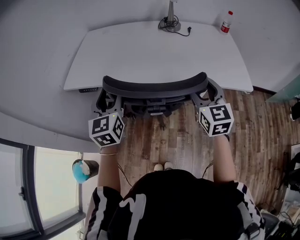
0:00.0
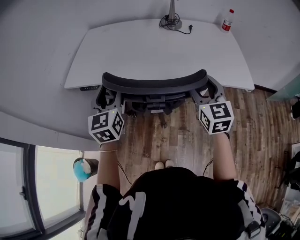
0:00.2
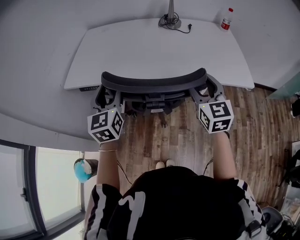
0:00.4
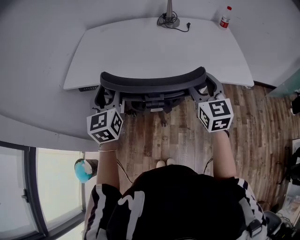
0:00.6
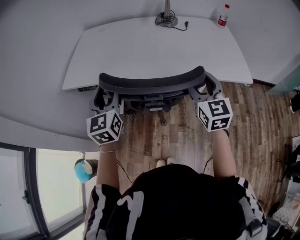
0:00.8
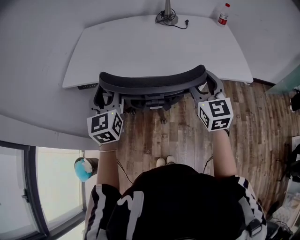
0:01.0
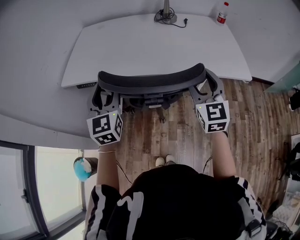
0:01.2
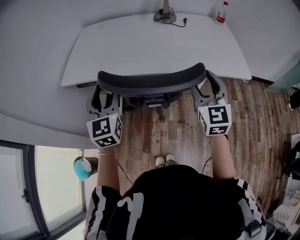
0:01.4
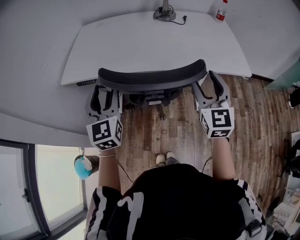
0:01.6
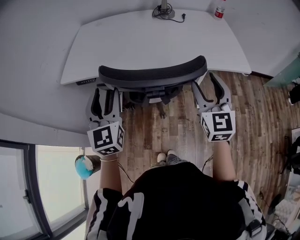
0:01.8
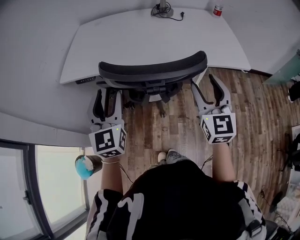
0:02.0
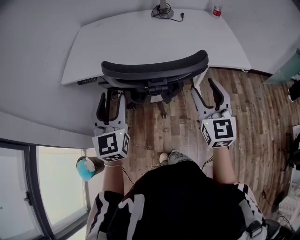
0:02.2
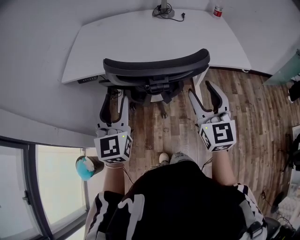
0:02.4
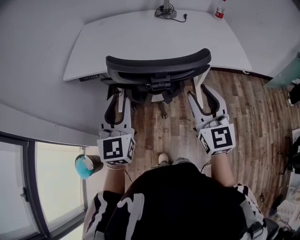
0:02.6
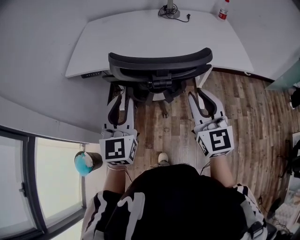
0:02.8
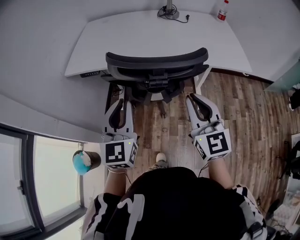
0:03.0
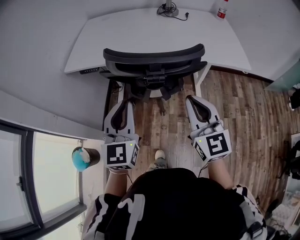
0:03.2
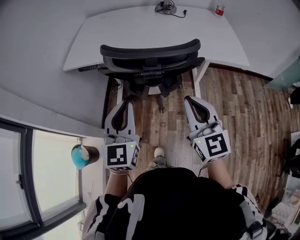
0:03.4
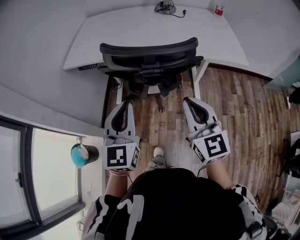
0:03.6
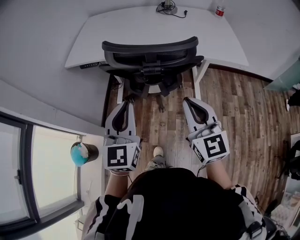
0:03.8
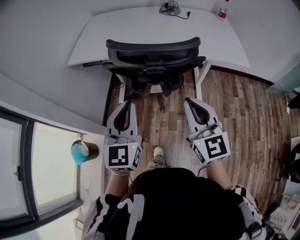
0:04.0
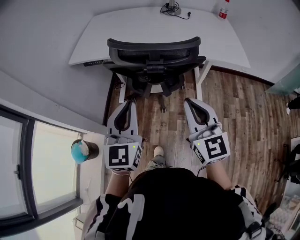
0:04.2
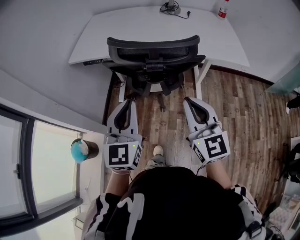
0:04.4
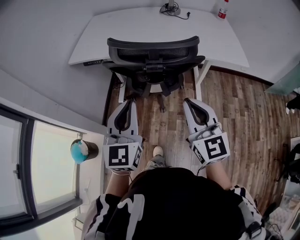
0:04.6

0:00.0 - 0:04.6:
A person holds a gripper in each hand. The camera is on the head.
0:00.0 - 0:01.6: The right gripper heads backward, covering roughly 5 cm.
0:01.6 - 0:03.0: The right gripper is displaced backward and to the left by about 15 cm, and closes up, while the left gripper travels backward by about 10 cm, and closes.
0:03.0 - 0:04.6: Both grippers travel together backward, approximately 10 cm.

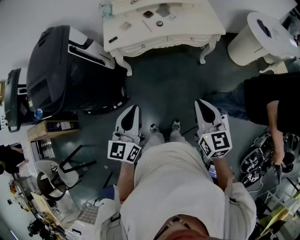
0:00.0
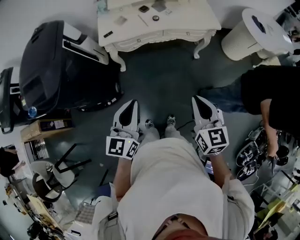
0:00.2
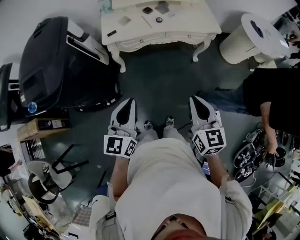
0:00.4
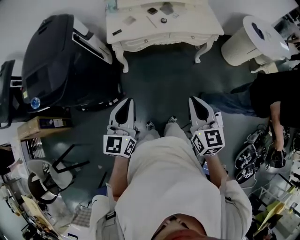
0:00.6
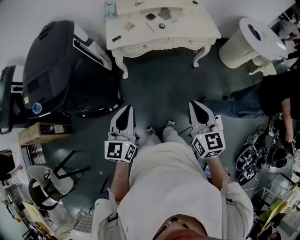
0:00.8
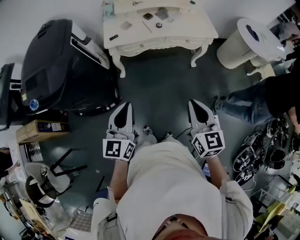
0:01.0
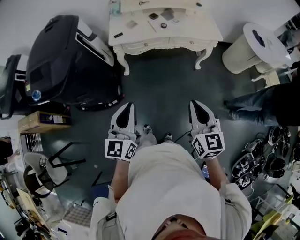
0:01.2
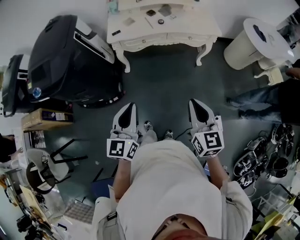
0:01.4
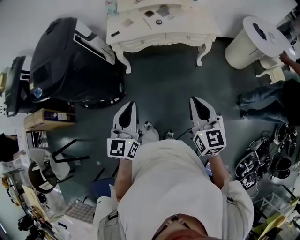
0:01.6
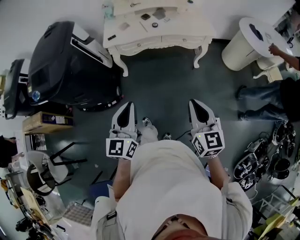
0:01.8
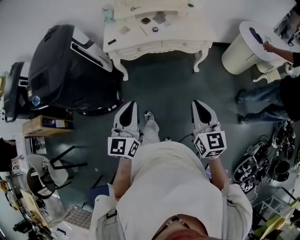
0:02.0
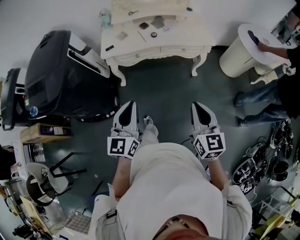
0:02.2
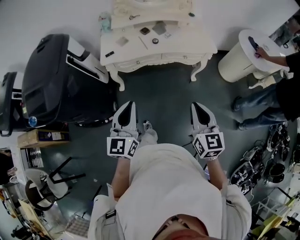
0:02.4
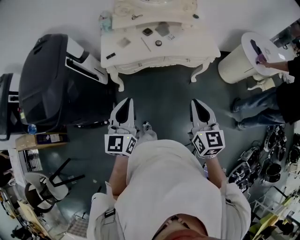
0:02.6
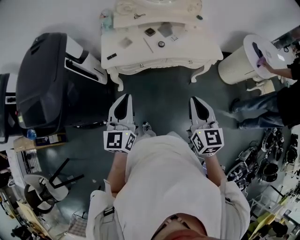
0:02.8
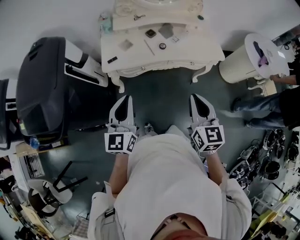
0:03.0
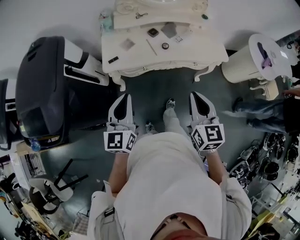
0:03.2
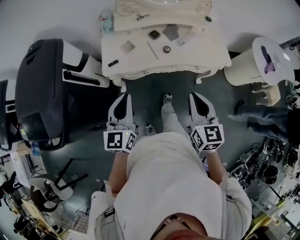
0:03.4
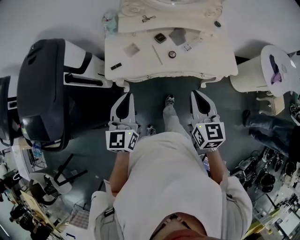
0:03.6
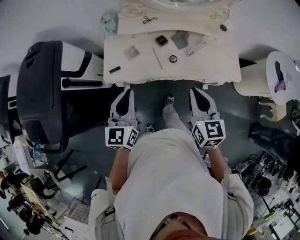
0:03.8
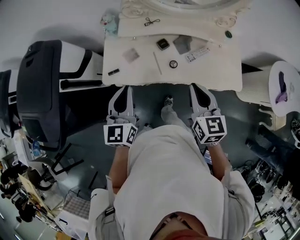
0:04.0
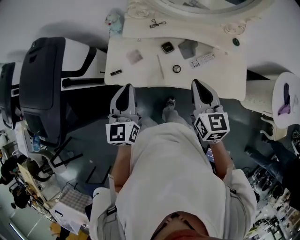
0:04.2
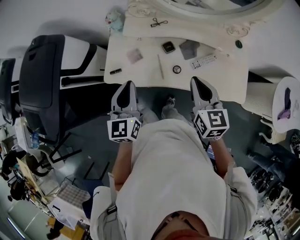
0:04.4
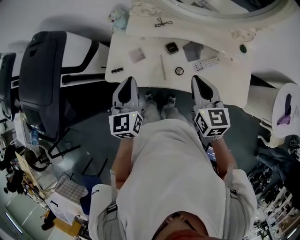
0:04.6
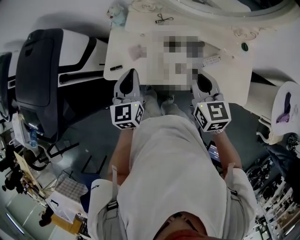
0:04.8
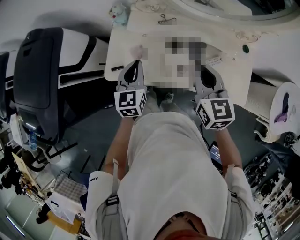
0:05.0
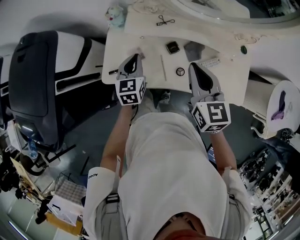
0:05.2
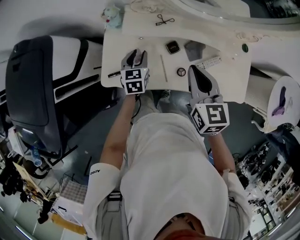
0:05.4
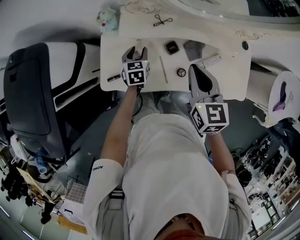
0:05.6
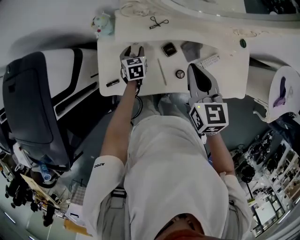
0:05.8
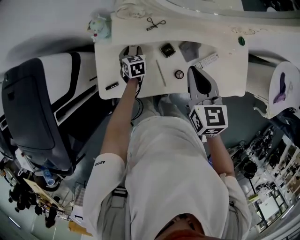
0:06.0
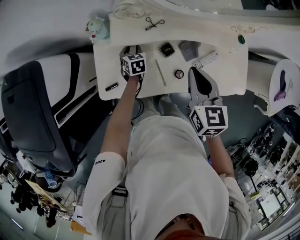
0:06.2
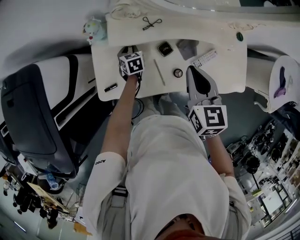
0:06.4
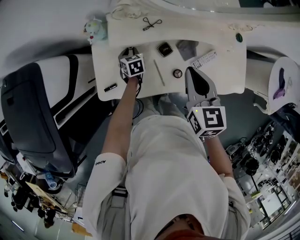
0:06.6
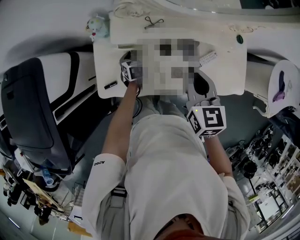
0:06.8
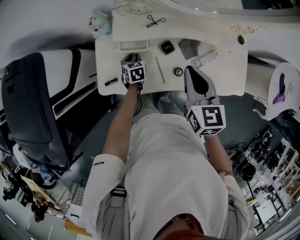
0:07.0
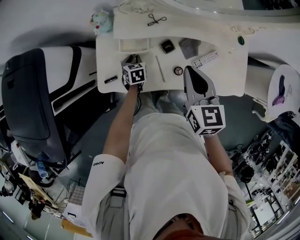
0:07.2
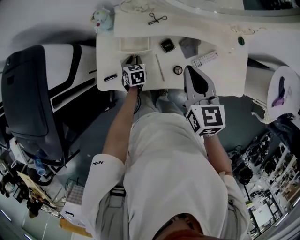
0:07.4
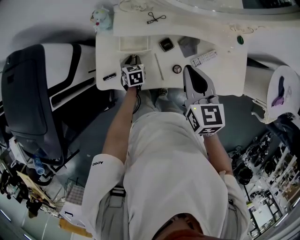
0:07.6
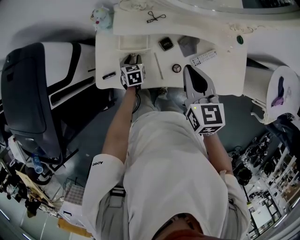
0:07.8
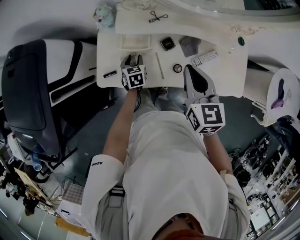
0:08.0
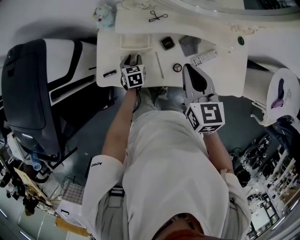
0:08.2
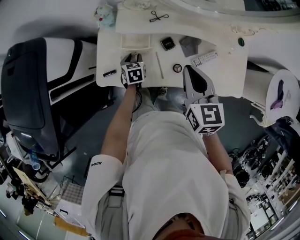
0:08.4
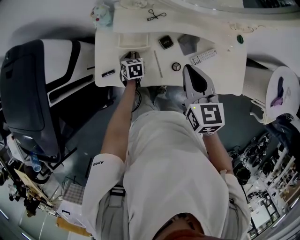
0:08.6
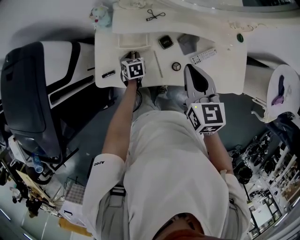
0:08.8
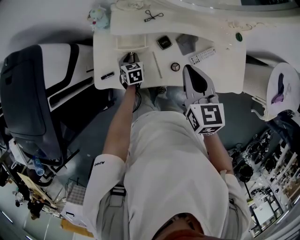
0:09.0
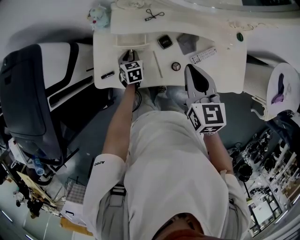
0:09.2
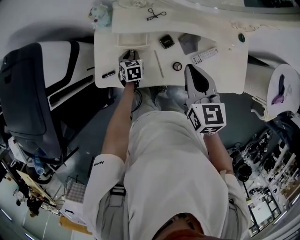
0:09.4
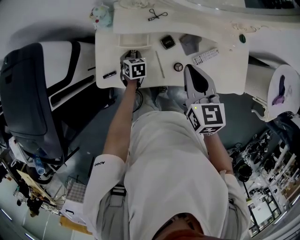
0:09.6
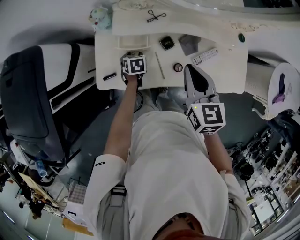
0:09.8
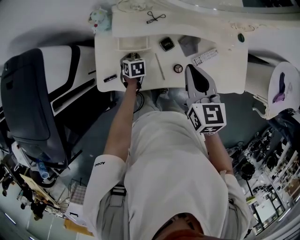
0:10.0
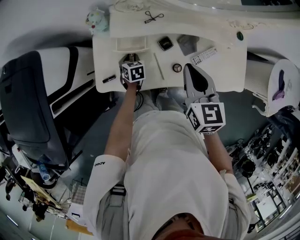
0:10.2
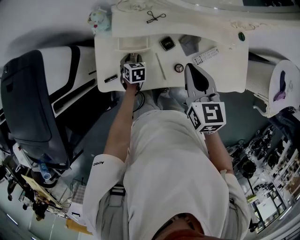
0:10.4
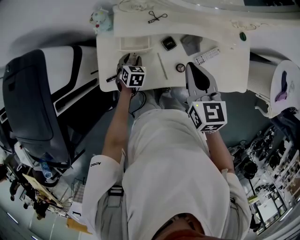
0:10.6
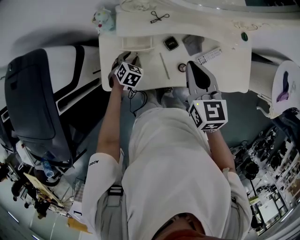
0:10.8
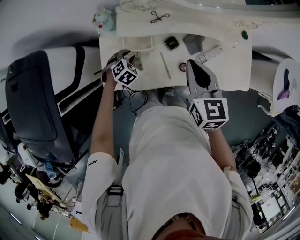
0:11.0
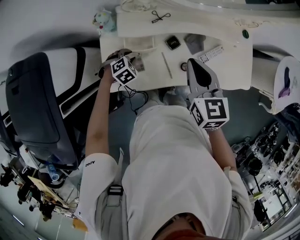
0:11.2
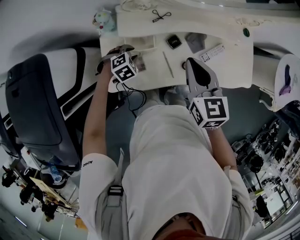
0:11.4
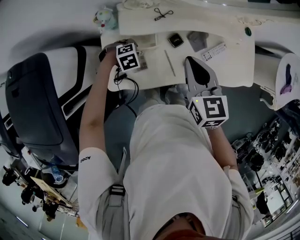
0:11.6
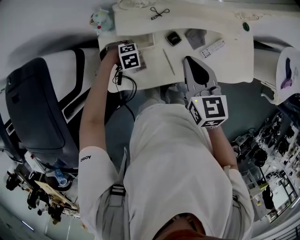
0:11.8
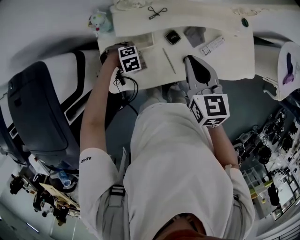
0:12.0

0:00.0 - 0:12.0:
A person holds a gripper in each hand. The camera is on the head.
0:00.0 - 0:01.6: Both grippers travel together backward, some 10 cm. The left gripper moves approximately 10 cm to the left and comes back; the right gripper moves about 10 cm to the left and comes back.
0:01.6 - 0:03.0: The two grippers go some 30 cm forward.
0:03.0 - 0:04.4: Both grippers travel together forward, some 35 cm. The left gripper turns by about 20 degrees; the right gripper turns by approximately 20 degrees.
0:04.4 - 0:06.0: The left gripper is displaced downward and forward by some 40 cm, angles its fingers downward, by roughly 40 degrees, and opens its fingers, while the right gripper is displaced forward by some 15 cm.
0:06.0 - 0:07.6: The left gripper shifts about 10 cm backward.
0:07.6 - 0:10.4: There are only small adjustments of the grippers.
0:10.4 - 0:12.0: The left gripper twists about 80 degrees clockwise, seen from behind, and closes.

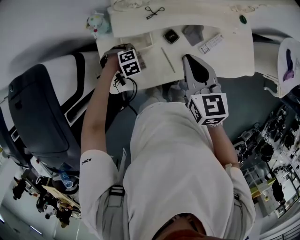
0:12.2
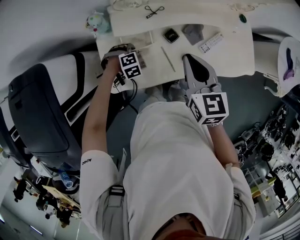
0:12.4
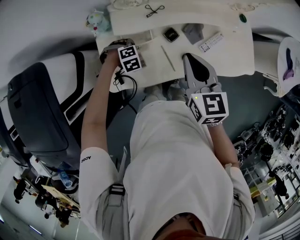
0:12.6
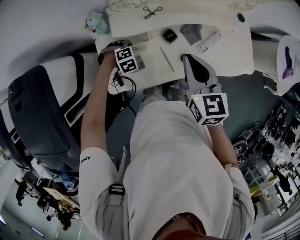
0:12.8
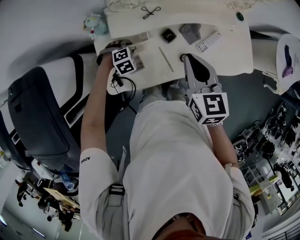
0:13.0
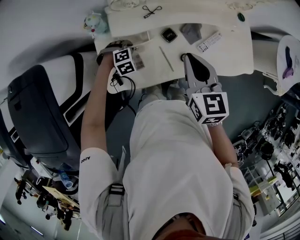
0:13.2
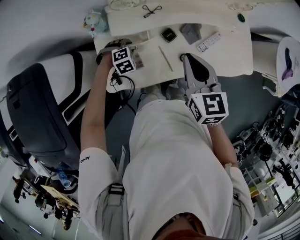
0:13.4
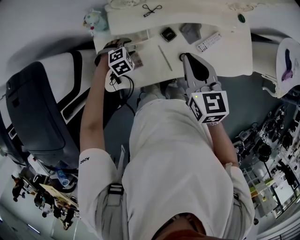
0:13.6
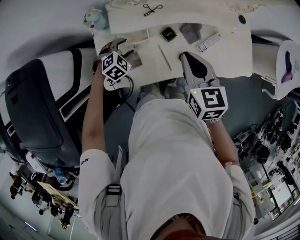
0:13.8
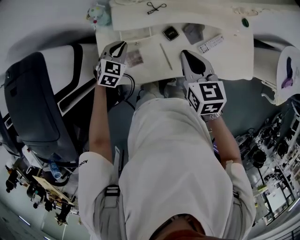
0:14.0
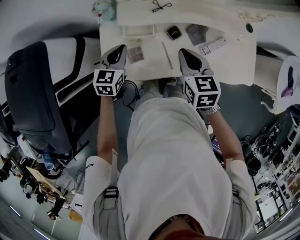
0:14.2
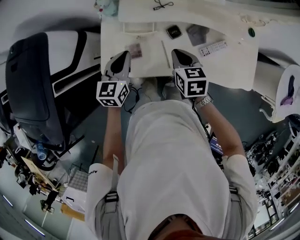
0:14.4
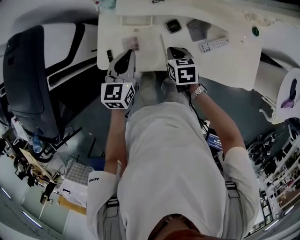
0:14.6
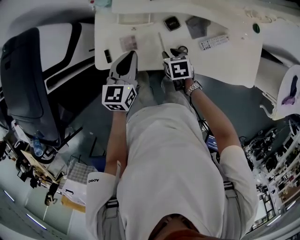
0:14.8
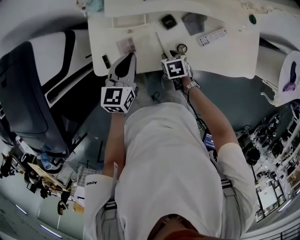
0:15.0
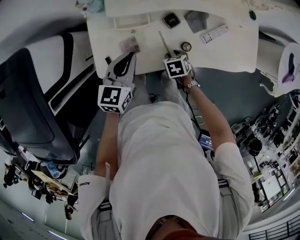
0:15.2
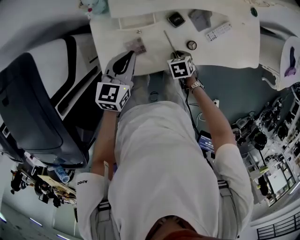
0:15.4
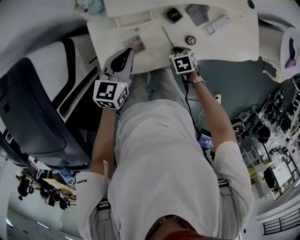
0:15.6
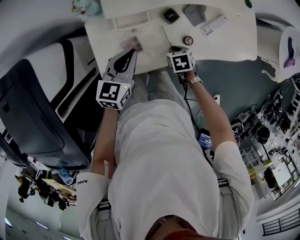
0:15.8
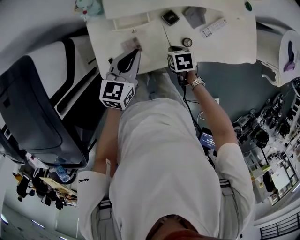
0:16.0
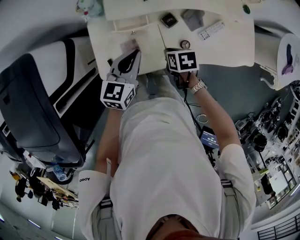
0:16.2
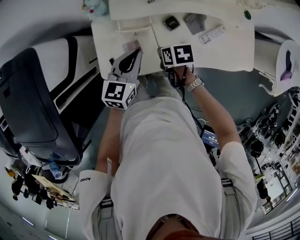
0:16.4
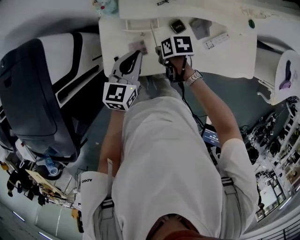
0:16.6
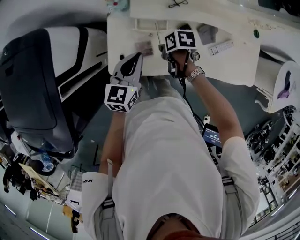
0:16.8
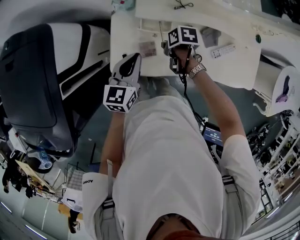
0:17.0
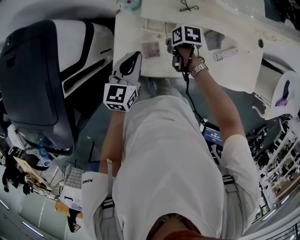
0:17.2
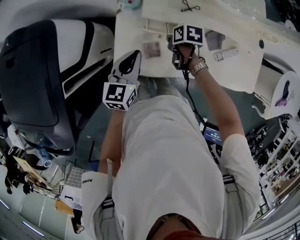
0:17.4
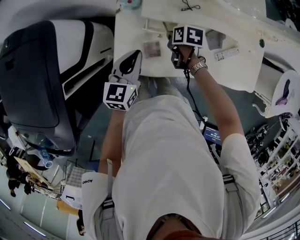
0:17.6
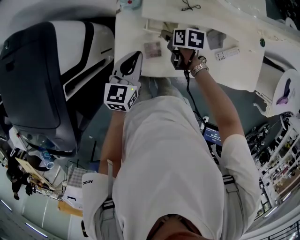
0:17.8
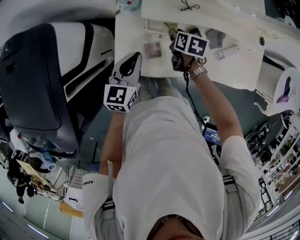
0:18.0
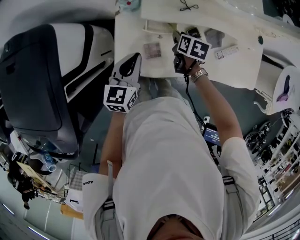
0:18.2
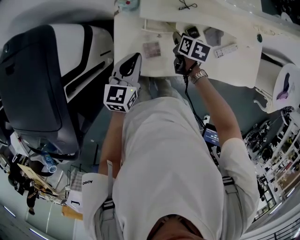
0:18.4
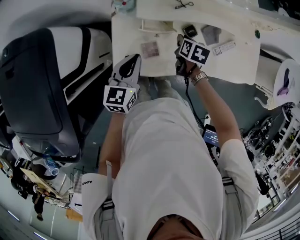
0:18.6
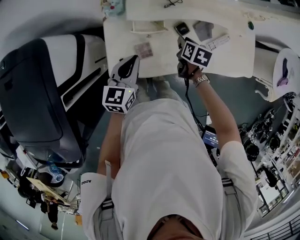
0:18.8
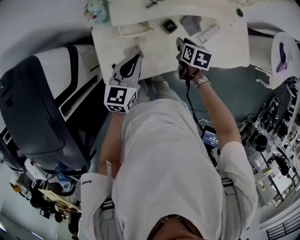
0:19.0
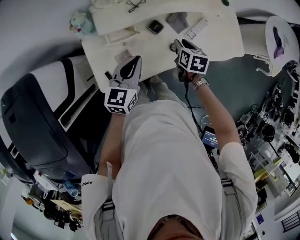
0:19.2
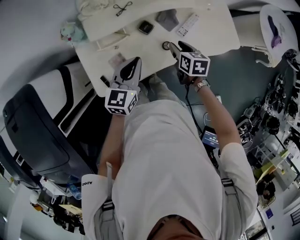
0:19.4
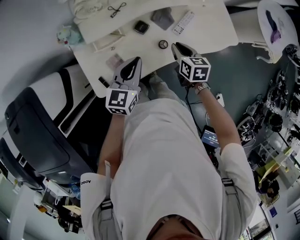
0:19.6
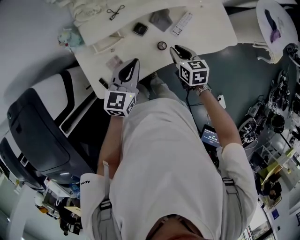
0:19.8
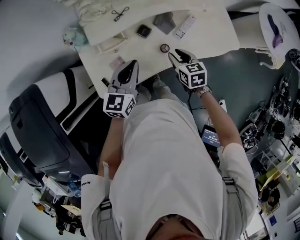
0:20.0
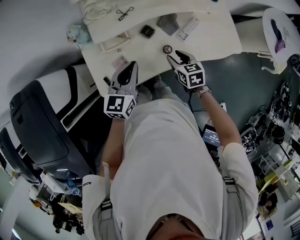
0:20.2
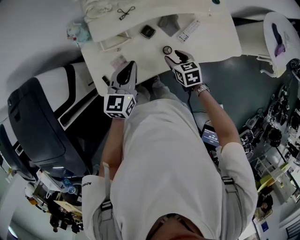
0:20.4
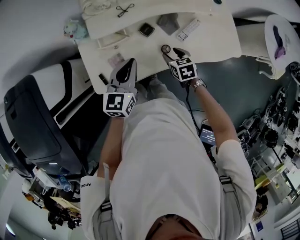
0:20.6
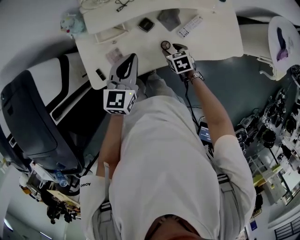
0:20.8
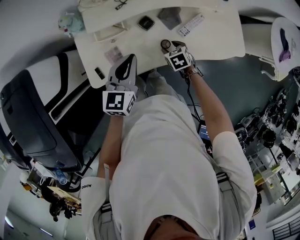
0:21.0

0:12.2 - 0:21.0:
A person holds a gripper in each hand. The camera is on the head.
0:12.2 - 0:13.6: The left gripper opens.
0:13.6 - 0:15.2: The left gripper goes approximately 15 cm upward, points its fingers roughly 40 degrees further upward, and closes. Meanwhile the right gripper moves downward, approximately 30 cm, tilts its fingers approximately 50 degrees downward, and opens up.
0:15.2 - 0:16.6: The right gripper moves upward, approximately 10 cm, rotates about 30 degrees, and closes its fingers.
0:16.6 - 0:18.0: The left gripper changes place by about 10 cm; the right gripper moves some 10 cm, and rotates approximately 20 degrees.
0:18.0 - 0:19.6: The left gripper shifts by roughly 20 cm, and rotates roughly 30 degrees; the right gripper moves some 25 cm, and changes its angle by some 20 degrees.
0:19.6 - 0:21.0: The right gripper travels downward by approximately 15 cm, swivels roughly 40 degrees, and opens.
